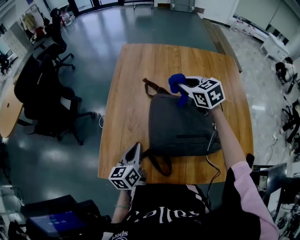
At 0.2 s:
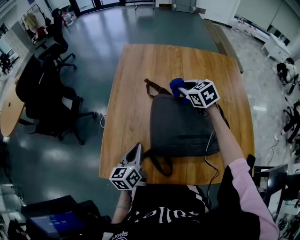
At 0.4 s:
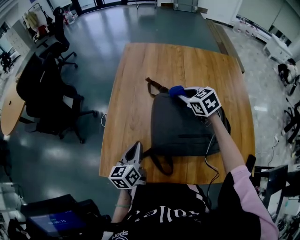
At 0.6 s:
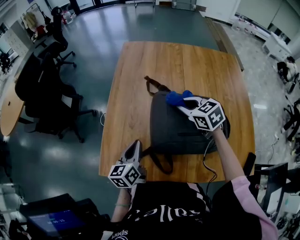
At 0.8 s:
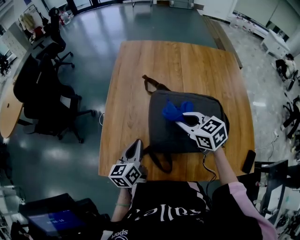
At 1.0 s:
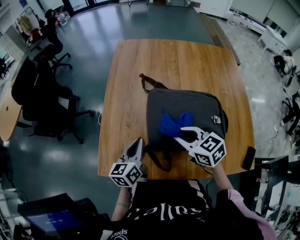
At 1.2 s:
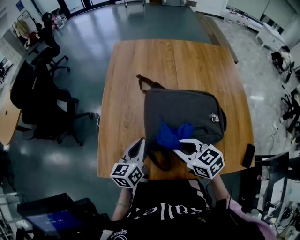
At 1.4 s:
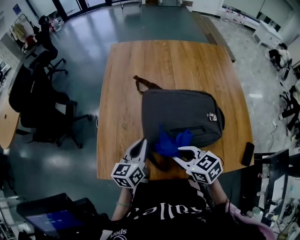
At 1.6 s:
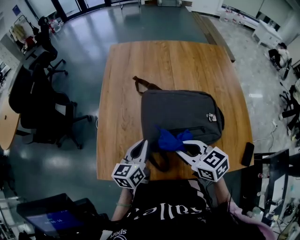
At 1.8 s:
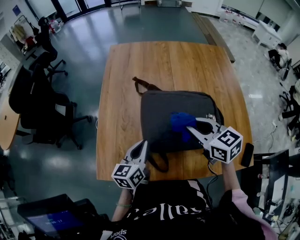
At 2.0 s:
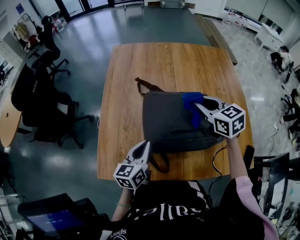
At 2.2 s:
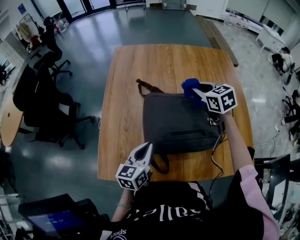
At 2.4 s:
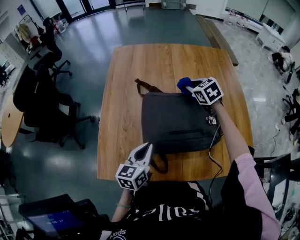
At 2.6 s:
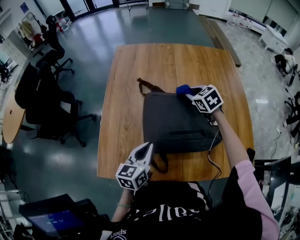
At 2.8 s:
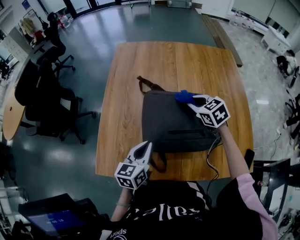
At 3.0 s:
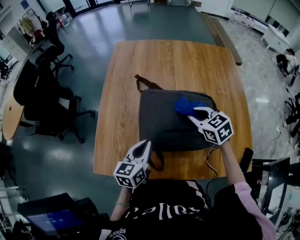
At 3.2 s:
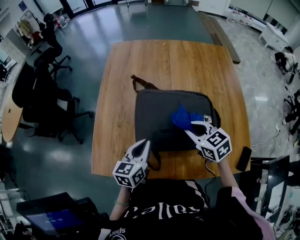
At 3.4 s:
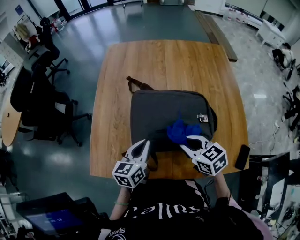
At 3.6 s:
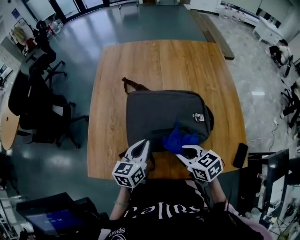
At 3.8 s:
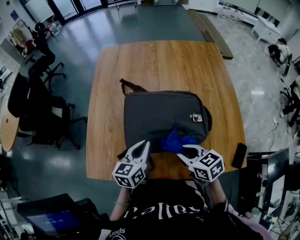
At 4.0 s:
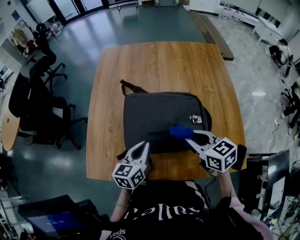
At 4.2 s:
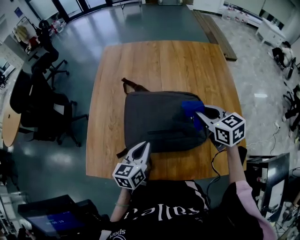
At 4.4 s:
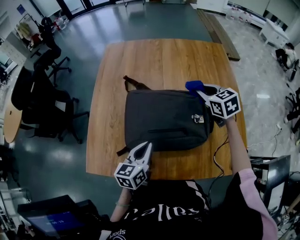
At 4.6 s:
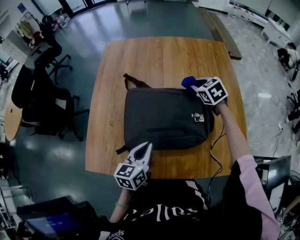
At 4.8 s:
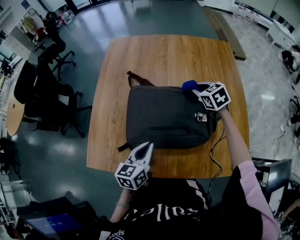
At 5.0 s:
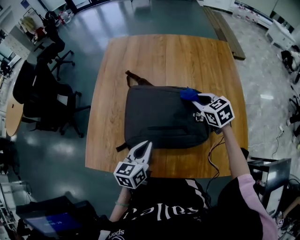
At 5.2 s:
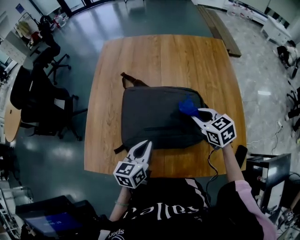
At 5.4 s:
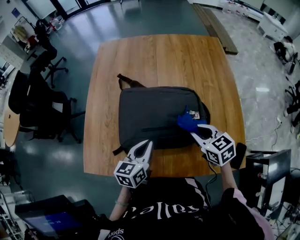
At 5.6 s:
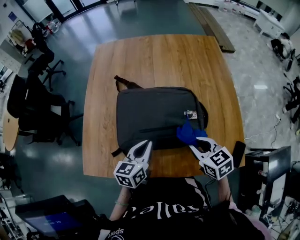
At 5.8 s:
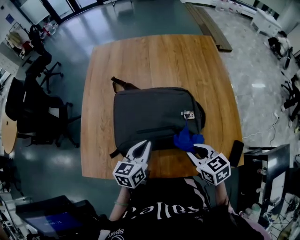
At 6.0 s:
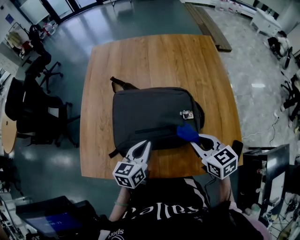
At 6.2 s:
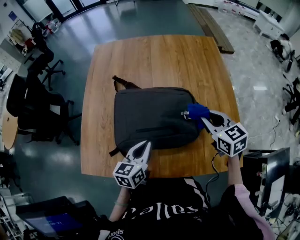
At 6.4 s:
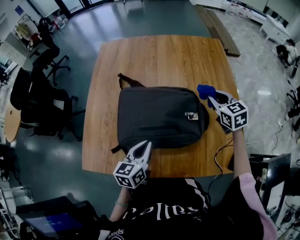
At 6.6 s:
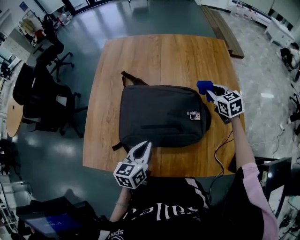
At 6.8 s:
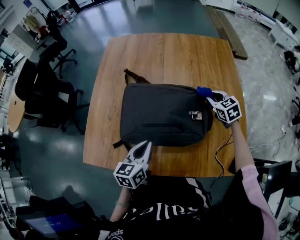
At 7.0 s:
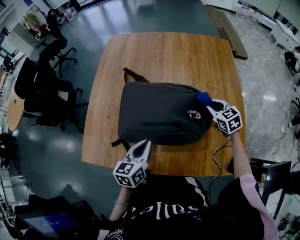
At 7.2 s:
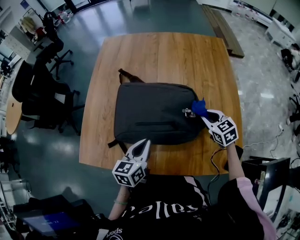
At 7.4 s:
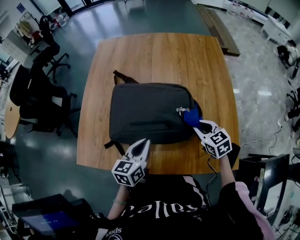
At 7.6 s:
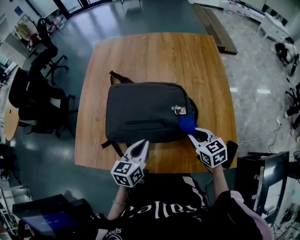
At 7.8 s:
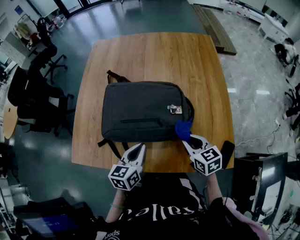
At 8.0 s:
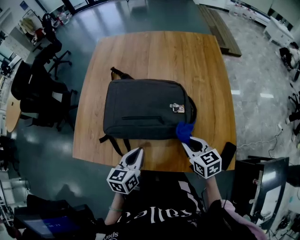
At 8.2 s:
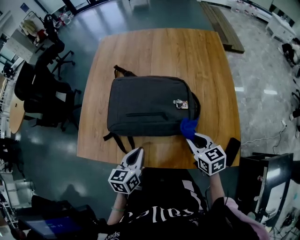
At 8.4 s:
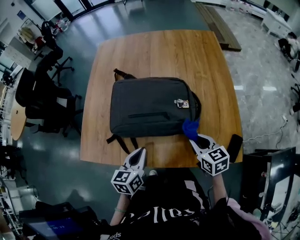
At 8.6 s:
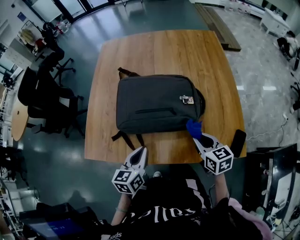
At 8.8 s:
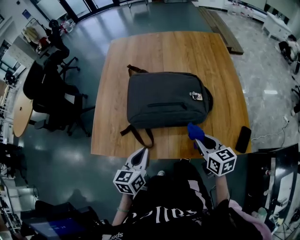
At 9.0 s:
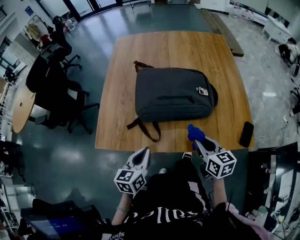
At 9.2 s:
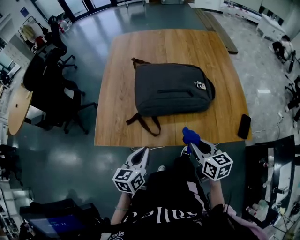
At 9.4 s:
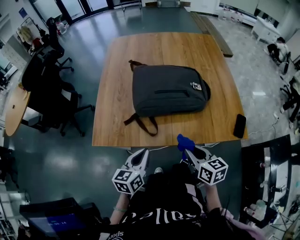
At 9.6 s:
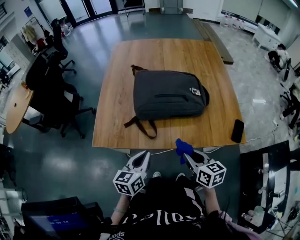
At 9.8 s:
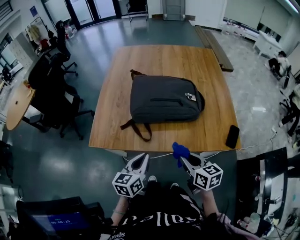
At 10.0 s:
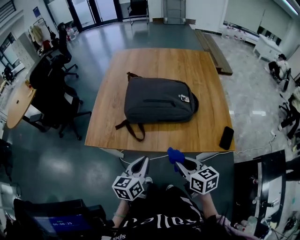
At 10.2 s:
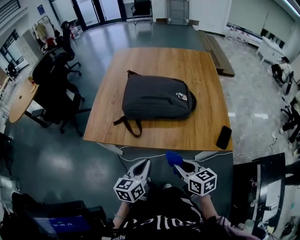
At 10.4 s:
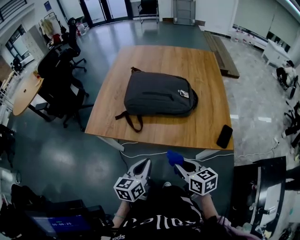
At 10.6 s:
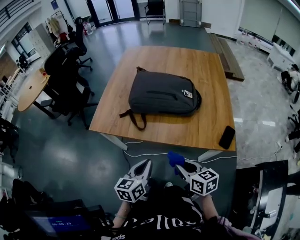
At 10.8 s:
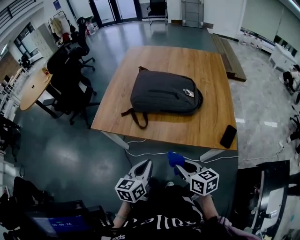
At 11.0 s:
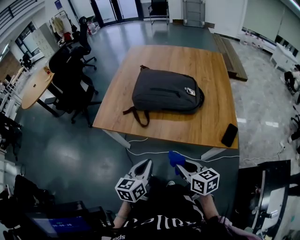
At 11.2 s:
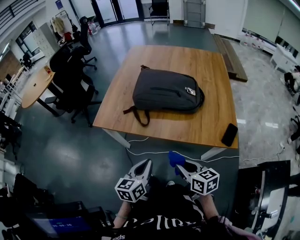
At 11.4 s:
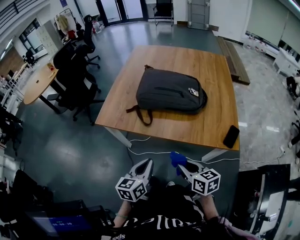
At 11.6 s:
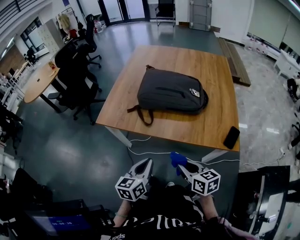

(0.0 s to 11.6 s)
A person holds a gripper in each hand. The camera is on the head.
0.0 s - 1.4 s: The left gripper is displaced to the right by approximately 5 cm. Meanwhile the right gripper shifts roughly 30 cm backward, and swivels approximately 20 degrees.
1.4 s - 2.8 s: The right gripper moves forward and to the right, about 25 cm, and swivels about 20 degrees.
2.8 s - 4.4 s: The right gripper moves to the right, approximately 15 cm, and moves some 20 cm backward and comes back. The left gripper moves to the right, about 10 cm.
4.4 s - 5.8 s: The right gripper moves backward, roughly 25 cm; the left gripper travels to the right by approximately 5 cm.
5.8 s - 7.2 s: The right gripper is displaced forward and to the right by approximately 15 cm.
7.2 s - 8.8 s: The left gripper heads backward and to the left, covering roughly 15 cm, while the right gripper heads backward and to the left, covering about 25 cm, and changes its angle by roughly 30 degrees.
8.8 s - 10.2 s: Both grippers move backward, approximately 20 cm.
10.2 s - 11.6 s: Both grippers move backward, about 5 cm.

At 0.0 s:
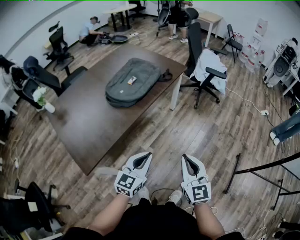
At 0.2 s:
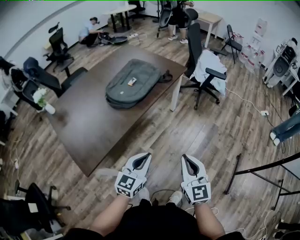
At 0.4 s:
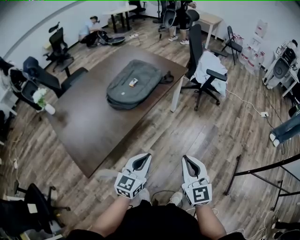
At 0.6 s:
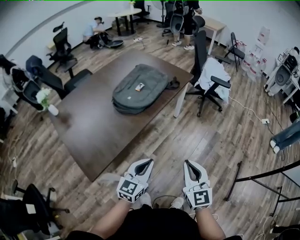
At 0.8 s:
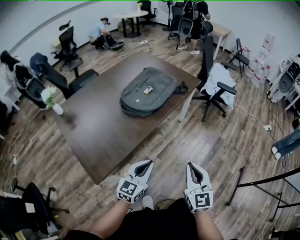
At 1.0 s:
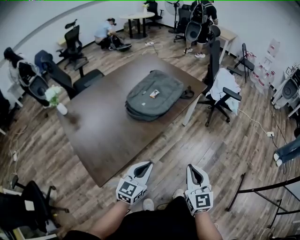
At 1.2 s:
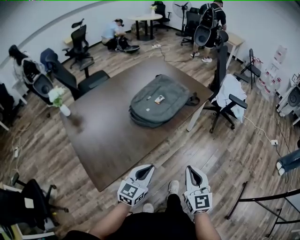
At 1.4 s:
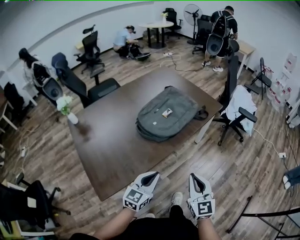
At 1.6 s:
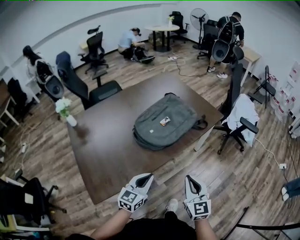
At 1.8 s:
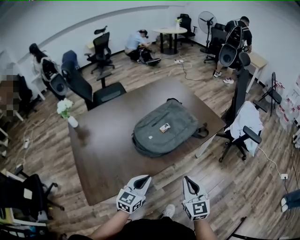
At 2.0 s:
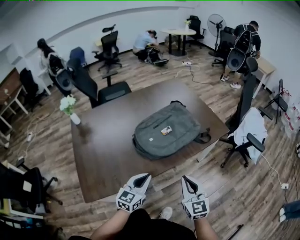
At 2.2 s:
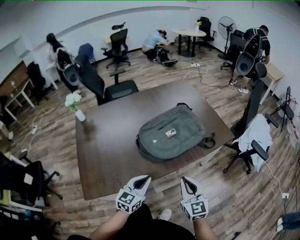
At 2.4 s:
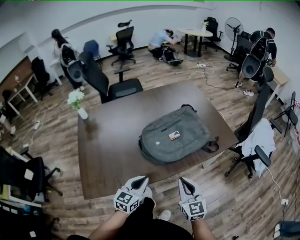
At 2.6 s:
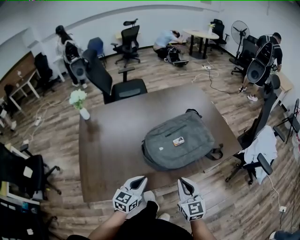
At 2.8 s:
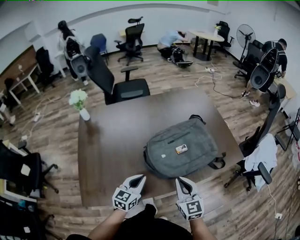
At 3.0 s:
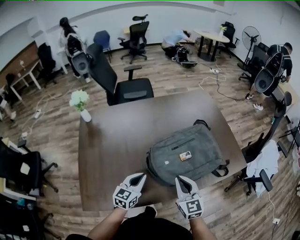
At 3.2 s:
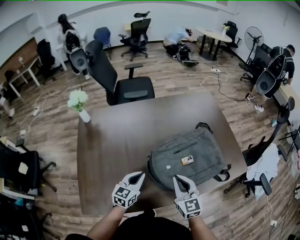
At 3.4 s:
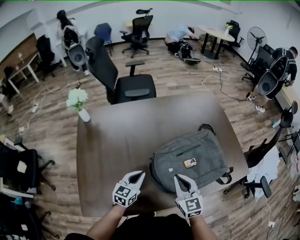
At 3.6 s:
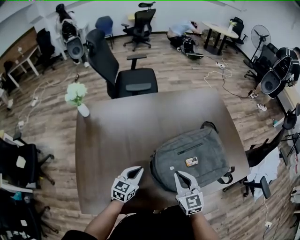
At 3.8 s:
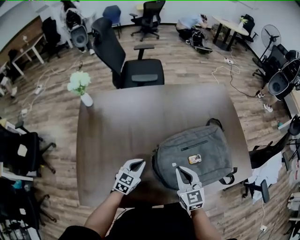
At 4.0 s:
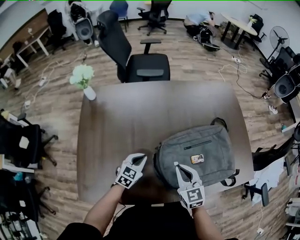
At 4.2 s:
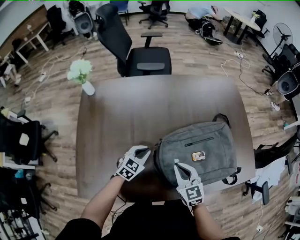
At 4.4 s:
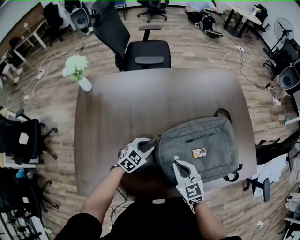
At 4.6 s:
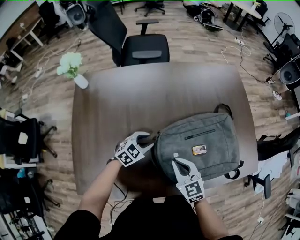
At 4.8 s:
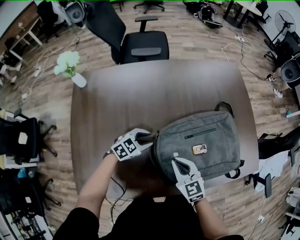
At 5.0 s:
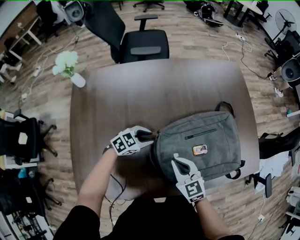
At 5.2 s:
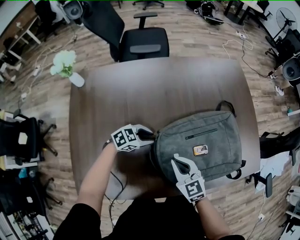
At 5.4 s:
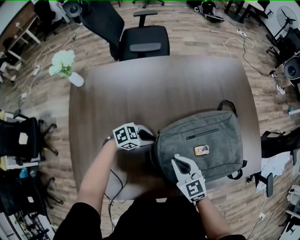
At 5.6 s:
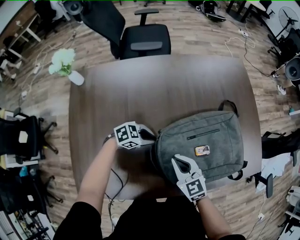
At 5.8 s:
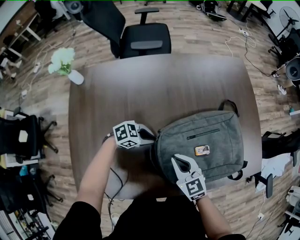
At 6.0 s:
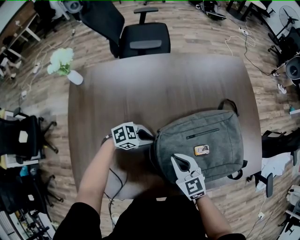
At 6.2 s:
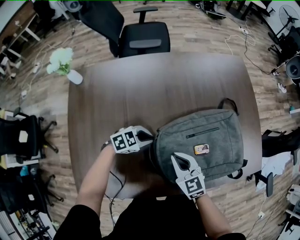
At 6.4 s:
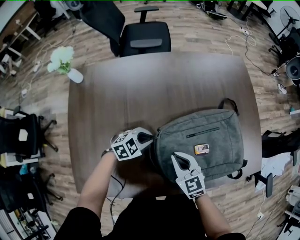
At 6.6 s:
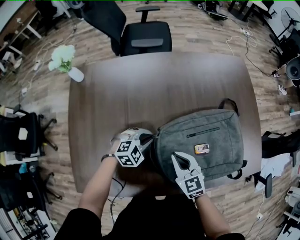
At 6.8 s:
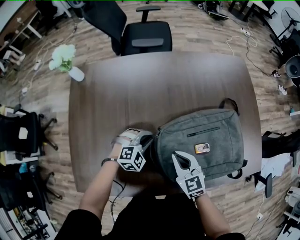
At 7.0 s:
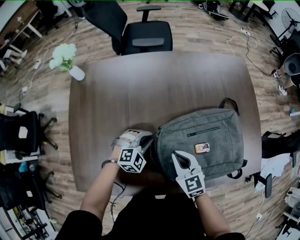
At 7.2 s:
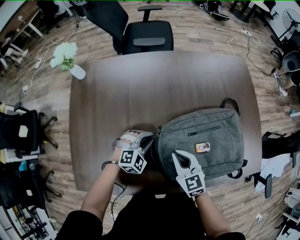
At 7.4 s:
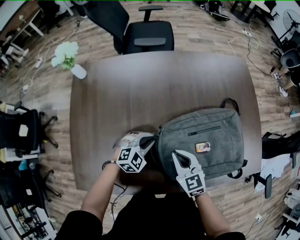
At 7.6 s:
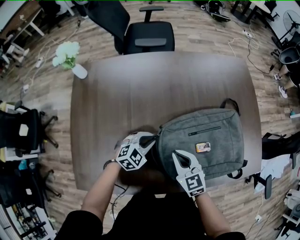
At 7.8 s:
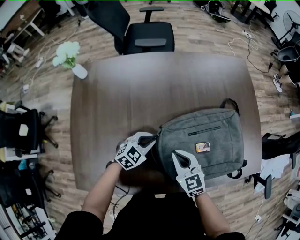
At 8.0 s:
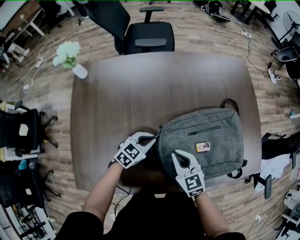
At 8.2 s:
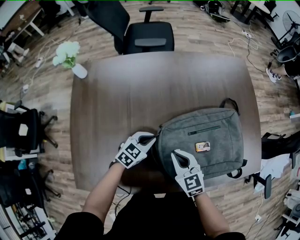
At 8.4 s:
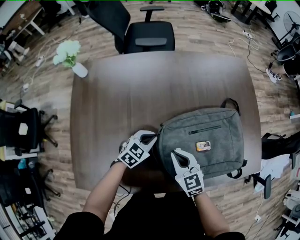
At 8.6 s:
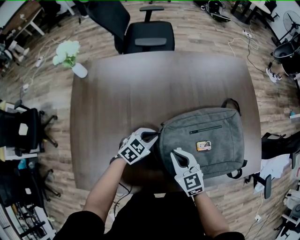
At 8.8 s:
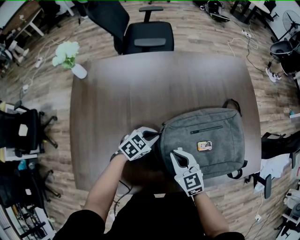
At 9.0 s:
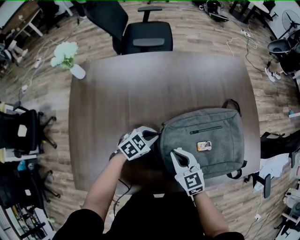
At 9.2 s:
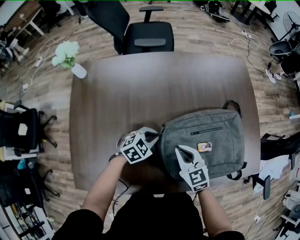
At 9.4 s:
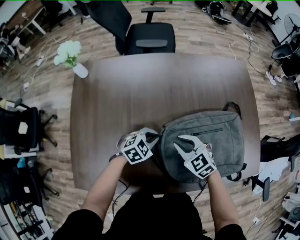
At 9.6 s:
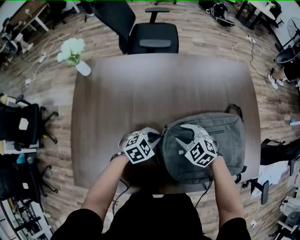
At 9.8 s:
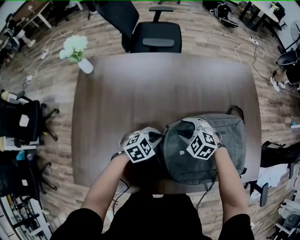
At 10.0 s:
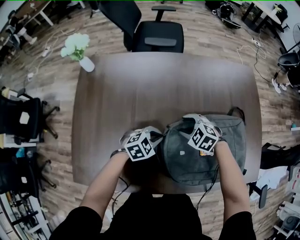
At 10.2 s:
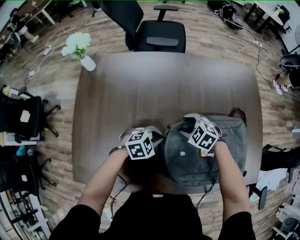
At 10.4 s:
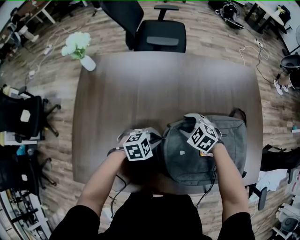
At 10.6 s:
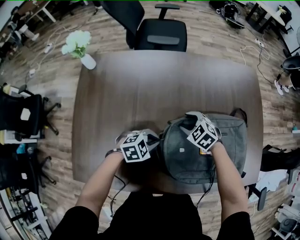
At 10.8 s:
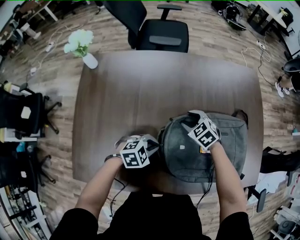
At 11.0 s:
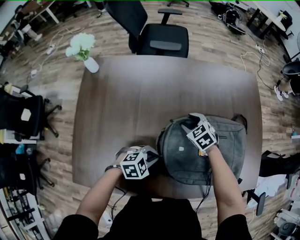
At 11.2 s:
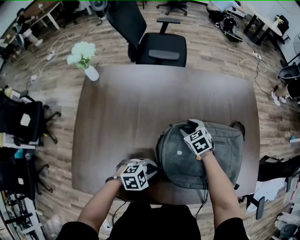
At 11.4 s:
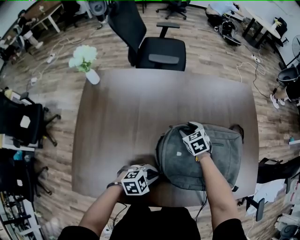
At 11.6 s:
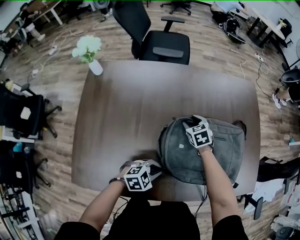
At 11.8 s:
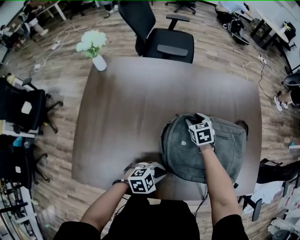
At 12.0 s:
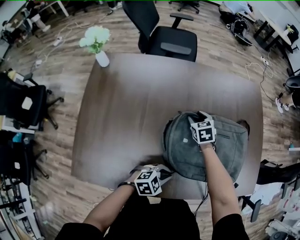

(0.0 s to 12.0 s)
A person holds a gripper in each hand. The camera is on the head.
0.0 s - 1.6 s: The two grippers go some 20 cm forward and to the left.
1.6 s - 3.0 s: The left gripper shifts by some 20 cm, and rotates approximately 20 degrees; the right gripper ends up some 25 cm from where it was, and changes its angle by about 30 degrees.
3.0 s - 4.4 s: The right gripper shifts about 15 cm forward, downward and to the left, and turns by some 20 degrees. Meanwhile the left gripper heads forward and downward, covering about 15 cm, rotates roughly 30 degrees, and opens up.
4.4 s - 6.0 s: The left gripper turns by about 40 degrees.
6.0 s - 7.6 s: The left gripper changes its angle by roughly 40 degrees.
9.0 s - 10.4 s: The right gripper changes place by about 15 cm, turns by some 50 degrees, and opens its fingers.
10.4 s - 12.0 s: The right gripper moves roughly 10 cm, and changes its angle by approximately 40 degrees; the left gripper shifts by some 15 cm.
